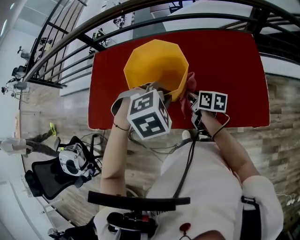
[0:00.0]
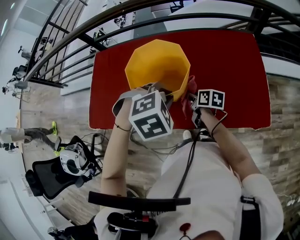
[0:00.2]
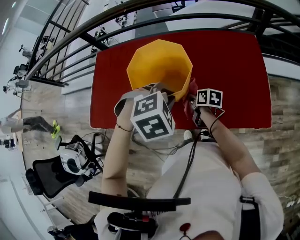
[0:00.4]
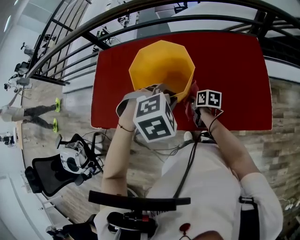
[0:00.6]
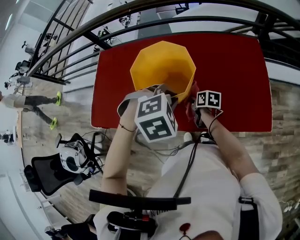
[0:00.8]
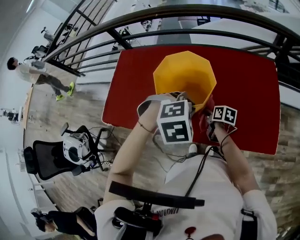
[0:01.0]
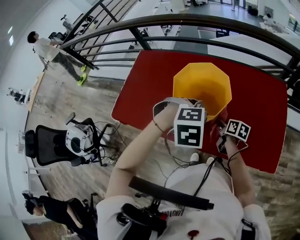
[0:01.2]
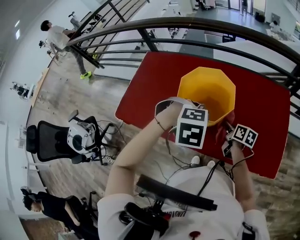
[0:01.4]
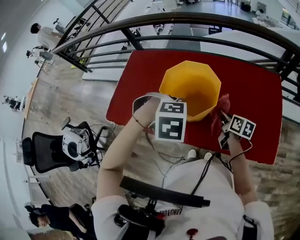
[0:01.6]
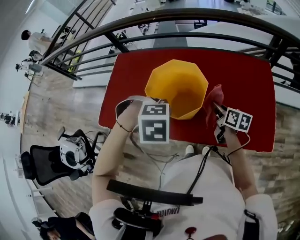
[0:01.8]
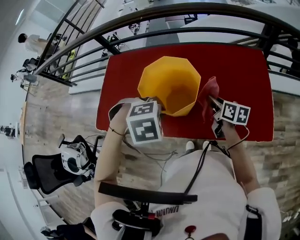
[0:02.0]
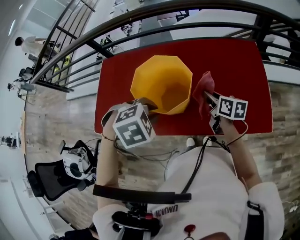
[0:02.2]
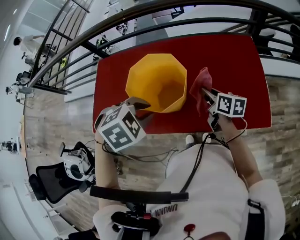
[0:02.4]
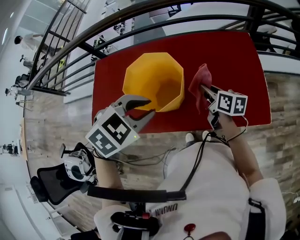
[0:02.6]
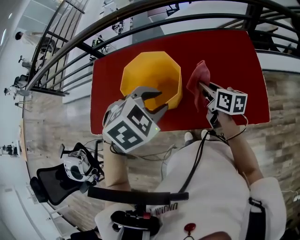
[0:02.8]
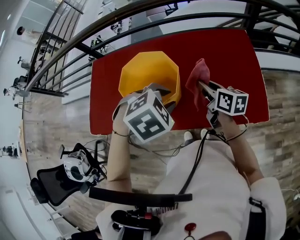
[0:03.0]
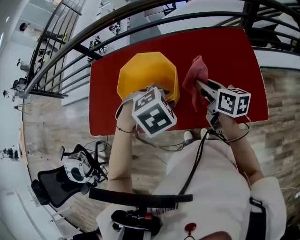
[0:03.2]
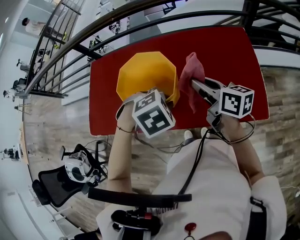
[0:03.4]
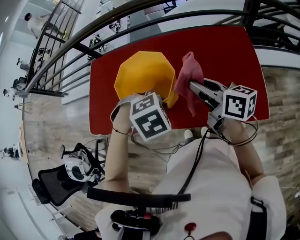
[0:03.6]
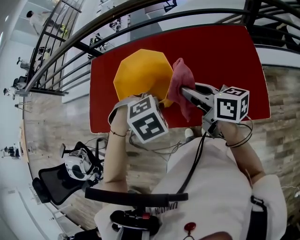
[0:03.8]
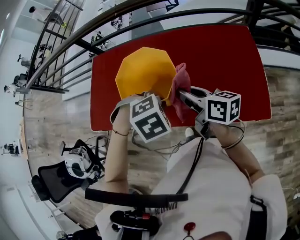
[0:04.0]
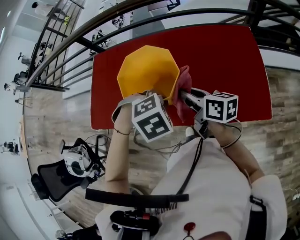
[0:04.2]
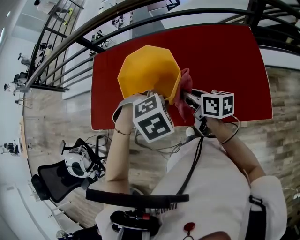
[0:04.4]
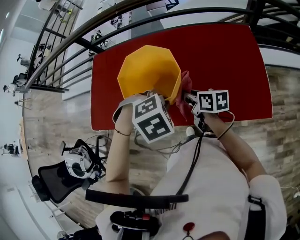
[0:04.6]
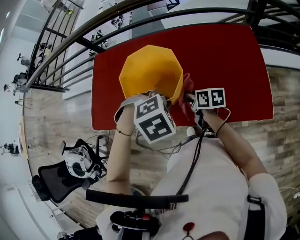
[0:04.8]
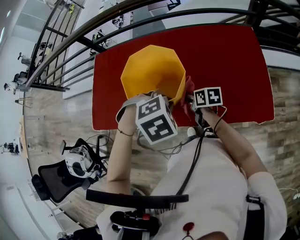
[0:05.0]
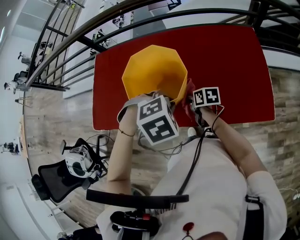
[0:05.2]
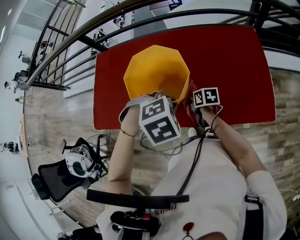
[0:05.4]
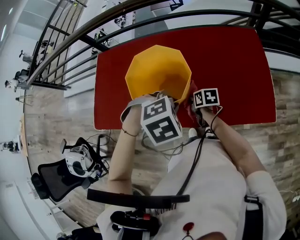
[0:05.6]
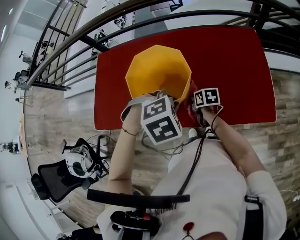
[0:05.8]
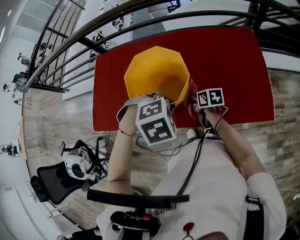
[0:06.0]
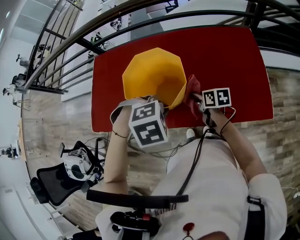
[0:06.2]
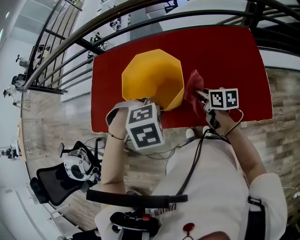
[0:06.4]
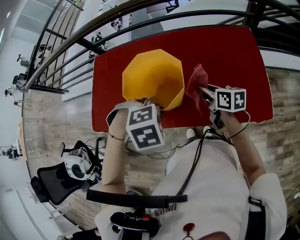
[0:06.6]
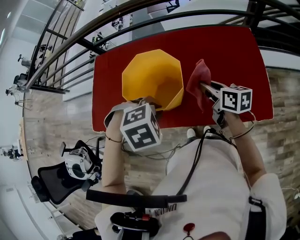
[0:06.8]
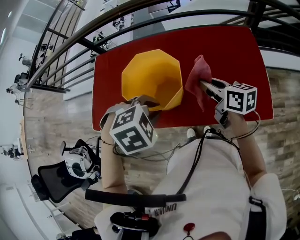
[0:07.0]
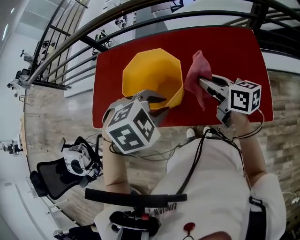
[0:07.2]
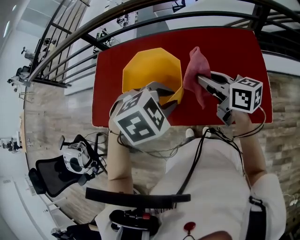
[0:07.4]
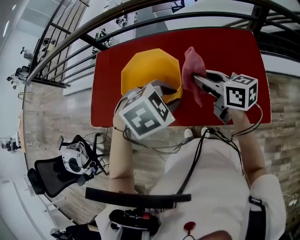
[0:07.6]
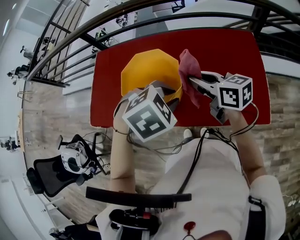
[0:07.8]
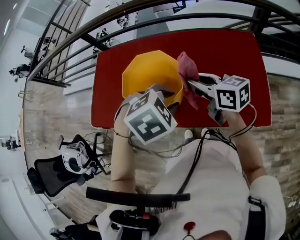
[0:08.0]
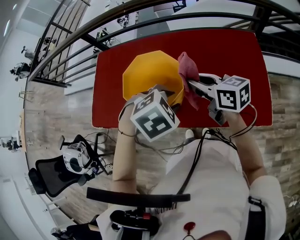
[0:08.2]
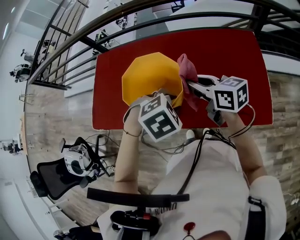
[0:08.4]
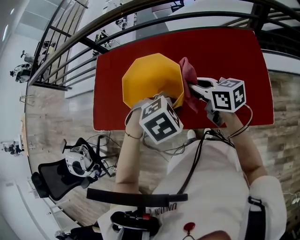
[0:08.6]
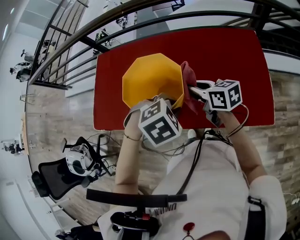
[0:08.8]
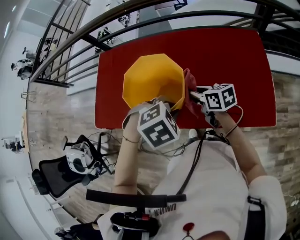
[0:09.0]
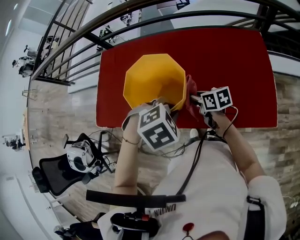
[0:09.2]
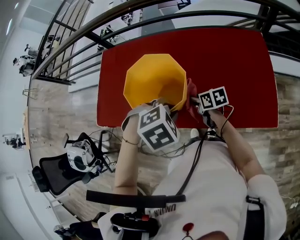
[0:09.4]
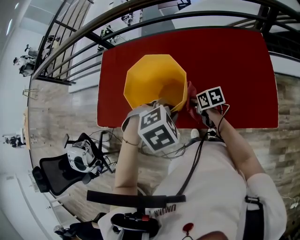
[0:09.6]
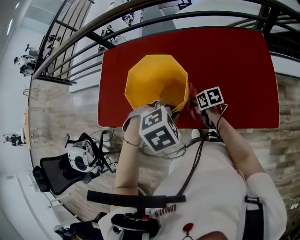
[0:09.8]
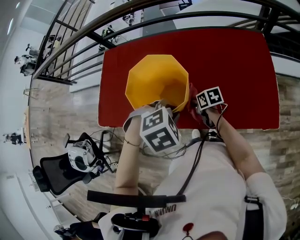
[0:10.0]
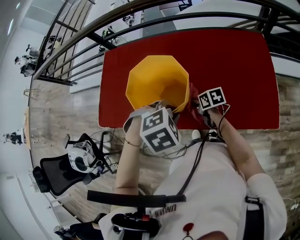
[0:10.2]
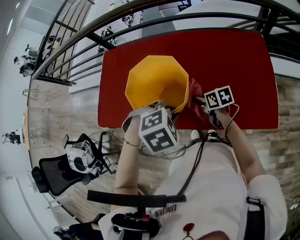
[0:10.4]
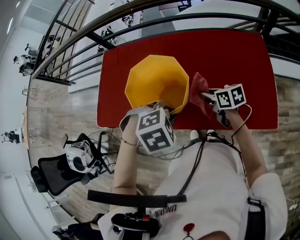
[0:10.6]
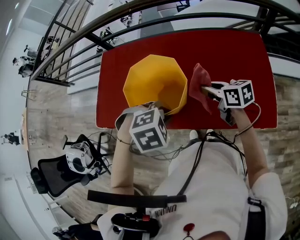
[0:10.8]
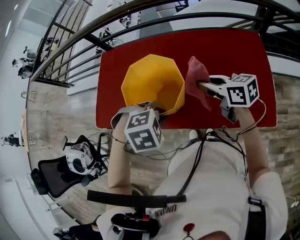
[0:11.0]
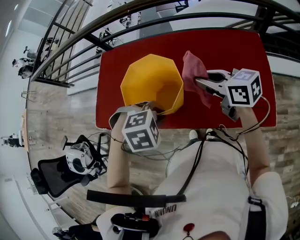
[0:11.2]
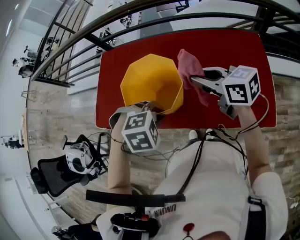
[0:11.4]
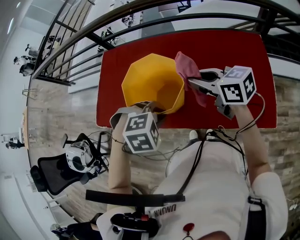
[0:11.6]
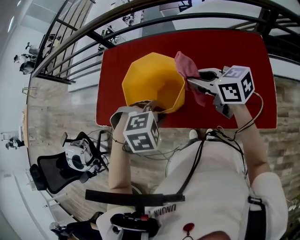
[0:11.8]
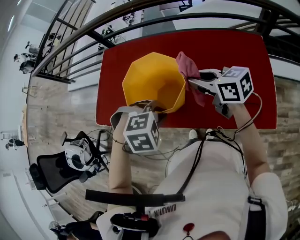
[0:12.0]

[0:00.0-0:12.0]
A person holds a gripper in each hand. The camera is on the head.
0.0 to 1.6 s: The right gripper moves about 10 cm downward and comes back; the left gripper changes place by about 5 cm.
1.6 to 3.0 s: The left gripper moves some 10 cm, and opens up, while the right gripper shifts about 10 cm upward.
3.0 to 4.4 s: The left gripper moves approximately 5 cm, and closes. The right gripper moves approximately 10 cm upward and comes back.
4.4 to 6.0 s: The right gripper travels downward by about 15 cm, and rotates about 20 degrees.
6.0 to 7.6 s: The left gripper moves approximately 5 cm; the right gripper goes approximately 25 cm upward, and tips its fingers upward by some 30 degrees.
7.6 to 9.0 s: The right gripper moves downward and to the left, about 15 cm; the left gripper moves downward, about 5 cm.
9.0 to 10.4 s: The right gripper travels downward by approximately 10 cm.
10.4 to 12.0 s: The right gripper shifts roughly 20 cm upward, and turns by approximately 30 degrees.

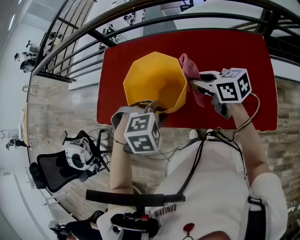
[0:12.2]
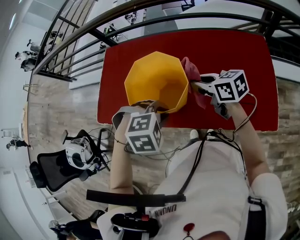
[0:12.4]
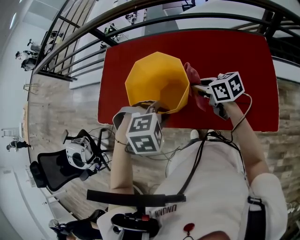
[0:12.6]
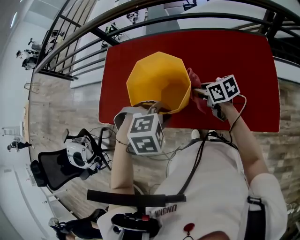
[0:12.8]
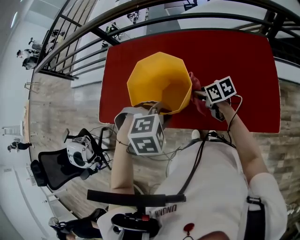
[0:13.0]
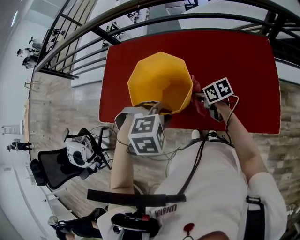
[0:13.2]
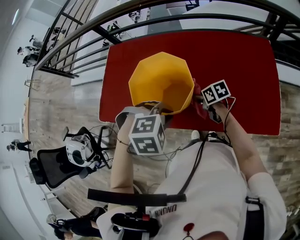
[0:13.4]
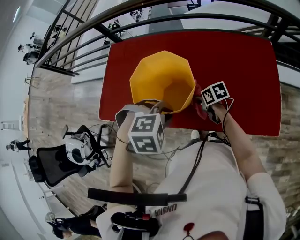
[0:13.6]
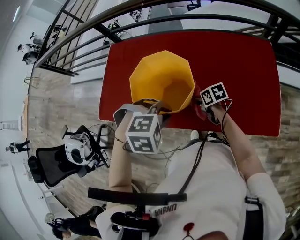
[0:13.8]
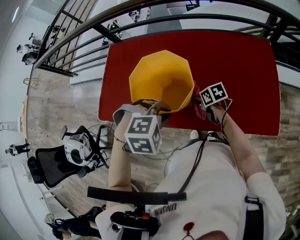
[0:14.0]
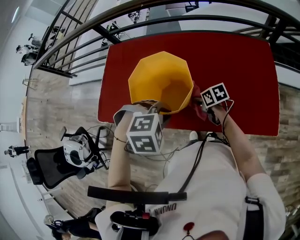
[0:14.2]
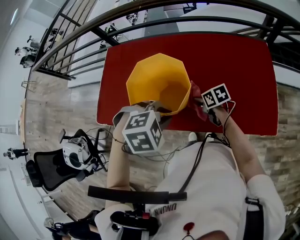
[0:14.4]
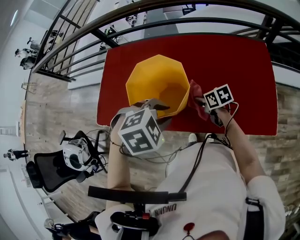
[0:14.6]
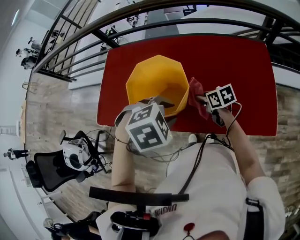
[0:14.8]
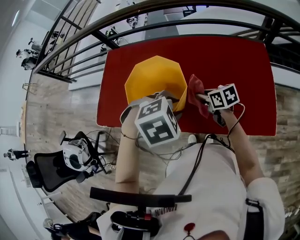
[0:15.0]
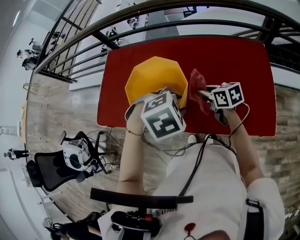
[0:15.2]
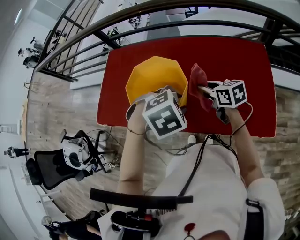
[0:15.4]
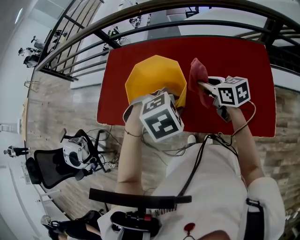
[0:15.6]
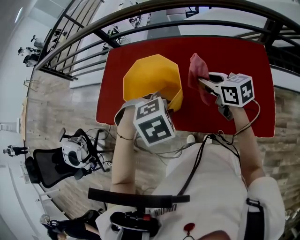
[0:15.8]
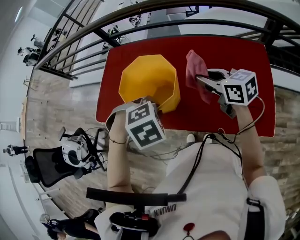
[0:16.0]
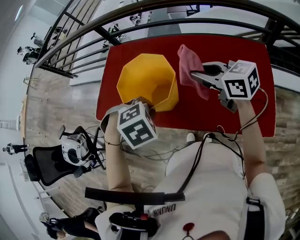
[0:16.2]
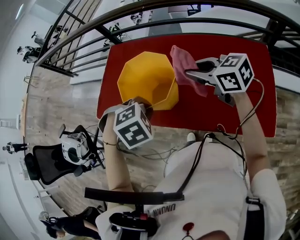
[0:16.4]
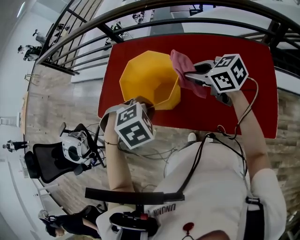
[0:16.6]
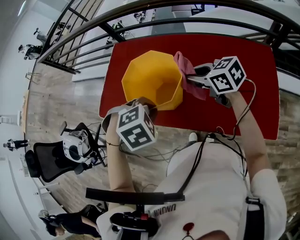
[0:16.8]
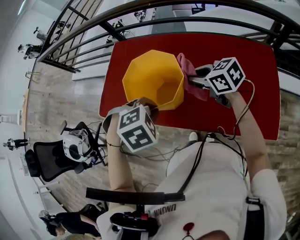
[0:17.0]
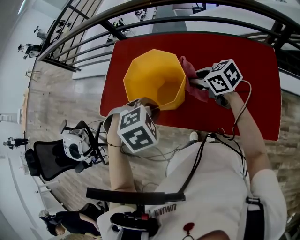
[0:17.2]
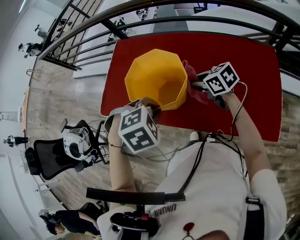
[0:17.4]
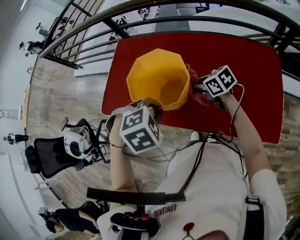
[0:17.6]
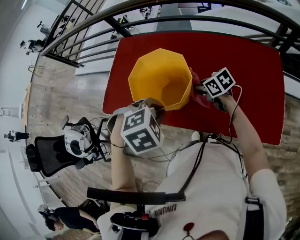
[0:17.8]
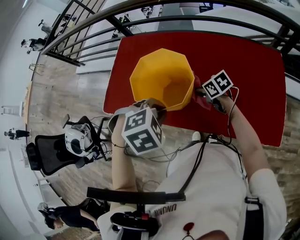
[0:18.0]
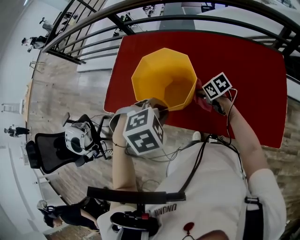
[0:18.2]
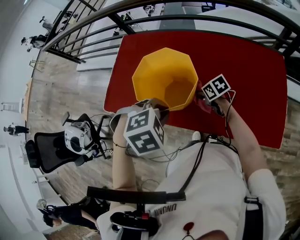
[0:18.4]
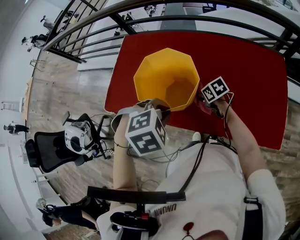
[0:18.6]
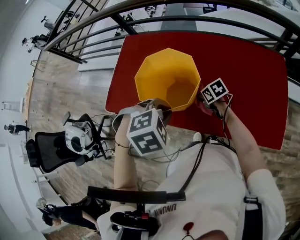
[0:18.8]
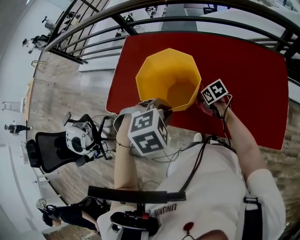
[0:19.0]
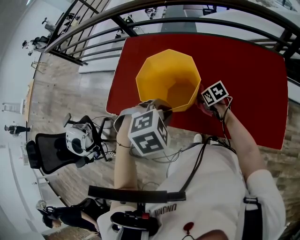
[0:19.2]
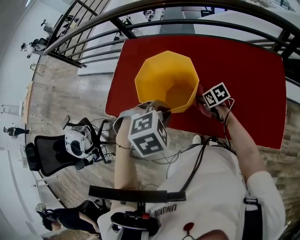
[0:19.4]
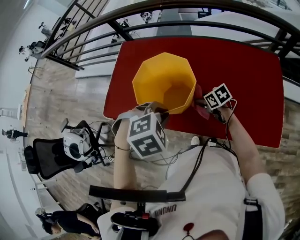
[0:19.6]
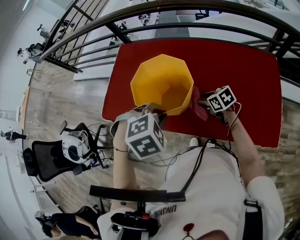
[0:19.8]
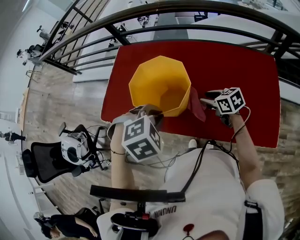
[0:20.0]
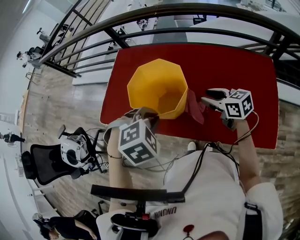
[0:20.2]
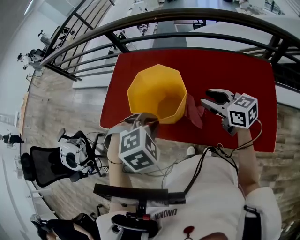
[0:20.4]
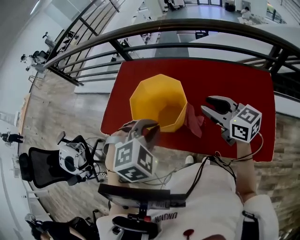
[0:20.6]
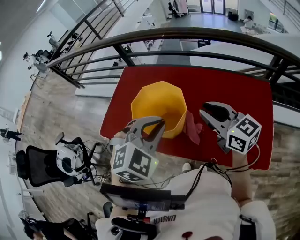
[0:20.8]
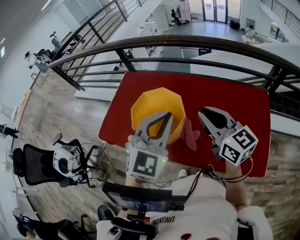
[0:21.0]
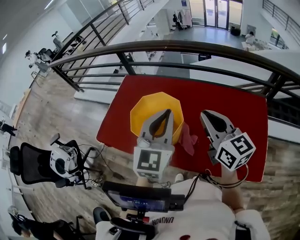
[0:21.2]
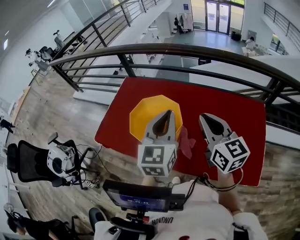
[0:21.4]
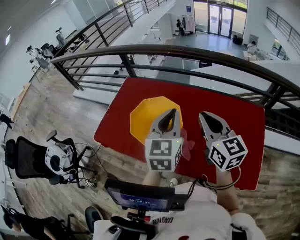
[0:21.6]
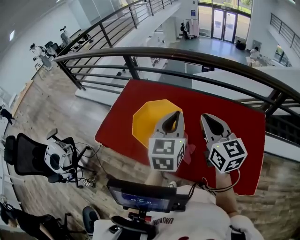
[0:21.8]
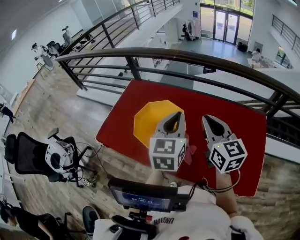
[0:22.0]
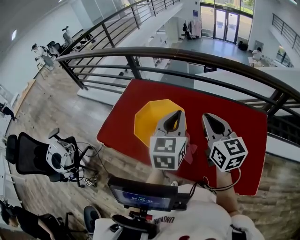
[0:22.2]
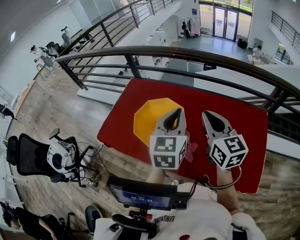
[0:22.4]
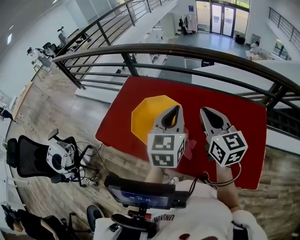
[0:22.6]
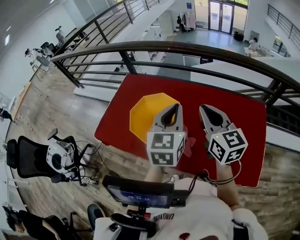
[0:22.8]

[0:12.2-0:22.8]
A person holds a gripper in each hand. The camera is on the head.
12.2 to 13.8 s: The right gripper is displaced downward by roughly 20 cm, and changes its angle by roughly 30 degrees.
13.8 to 15.2 s: The left gripper moves roughly 10 cm, swivels about 20 degrees, and opens its fingers. The right gripper shifts about 10 cm upward.
15.2 to 16.8 s: The right gripper shifts roughly 10 cm upward, and rotates roughly 30 degrees; the left gripper moves about 10 cm, and closes.
16.8 to 18.2 s: The right gripper travels downward by some 20 cm, and rotates some 20 degrees.
18.2 to 19.8 s: The right gripper opens.
19.8 to 21.2 s: The left gripper travels upward and to the right by about 20 cm, and tilts its fingers approximately 70 degrees upward, while the right gripper moves upward, roughly 30 cm, points its fingers some 40 degrees further upward, and closes up.
21.2 to 22.8 s: The left gripper shifts by approximately 5 cm.

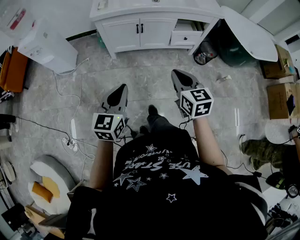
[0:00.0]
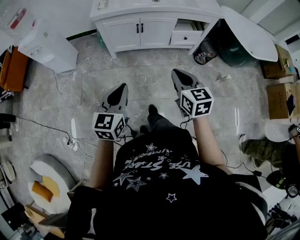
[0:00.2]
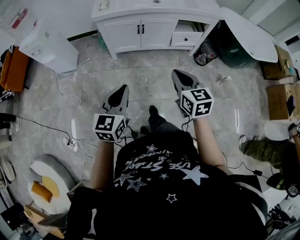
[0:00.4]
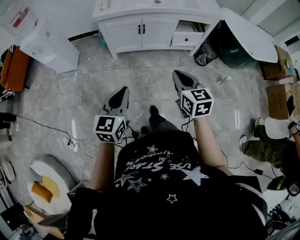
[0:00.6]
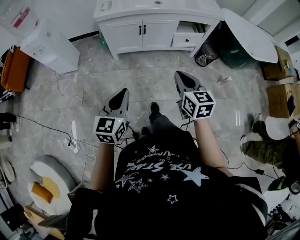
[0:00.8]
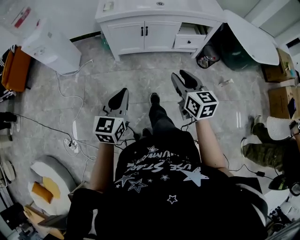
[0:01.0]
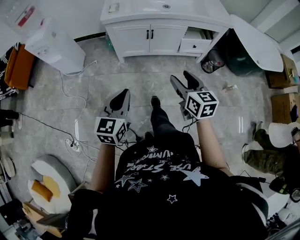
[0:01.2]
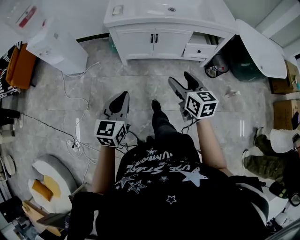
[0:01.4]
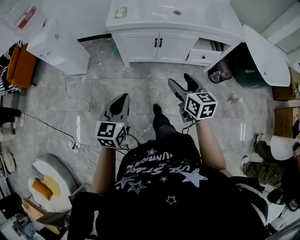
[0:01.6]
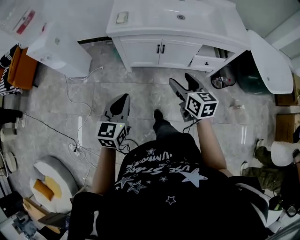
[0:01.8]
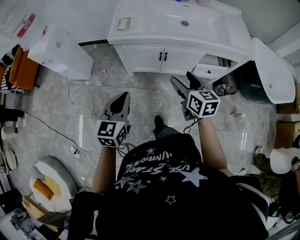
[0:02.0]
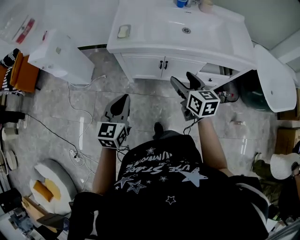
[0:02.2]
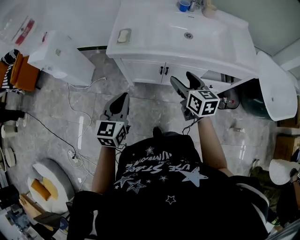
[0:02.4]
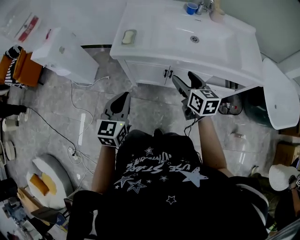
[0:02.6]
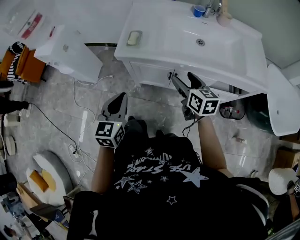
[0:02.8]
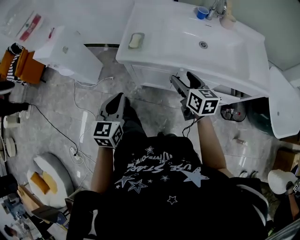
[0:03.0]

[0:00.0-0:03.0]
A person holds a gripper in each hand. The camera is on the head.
0.0 to 1.6 s: Both grippers move forward and to the left, some 15 cm. The right gripper opens its fingers.
1.6 to 3.0 s: Both grippers move forward, about 30 cm.
